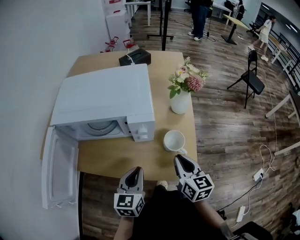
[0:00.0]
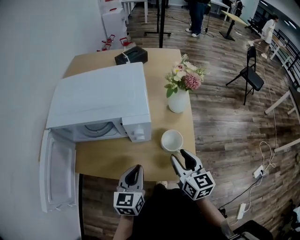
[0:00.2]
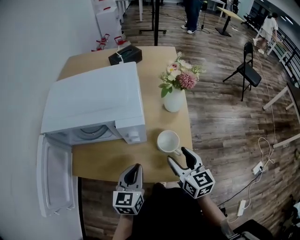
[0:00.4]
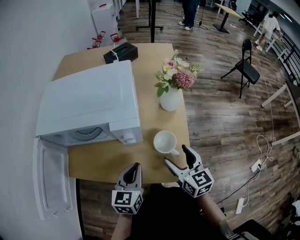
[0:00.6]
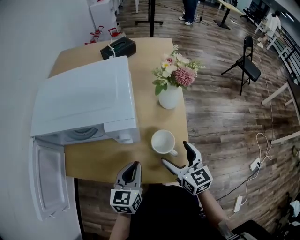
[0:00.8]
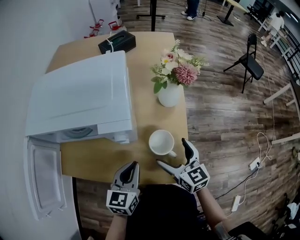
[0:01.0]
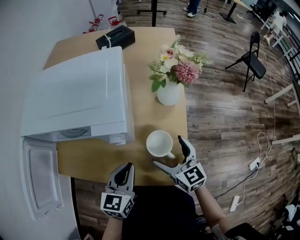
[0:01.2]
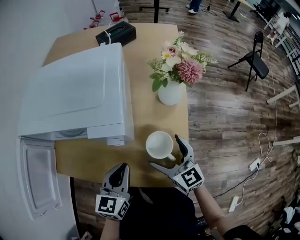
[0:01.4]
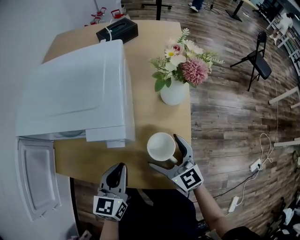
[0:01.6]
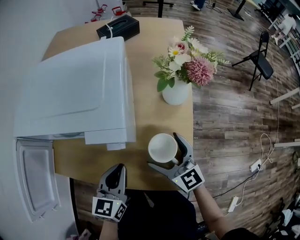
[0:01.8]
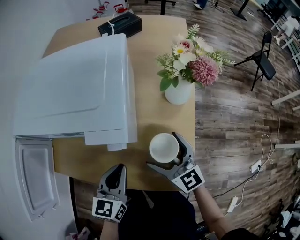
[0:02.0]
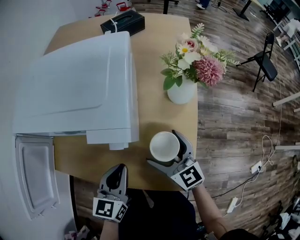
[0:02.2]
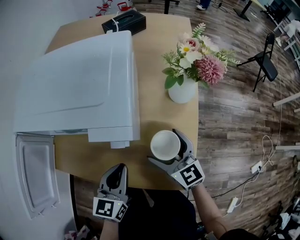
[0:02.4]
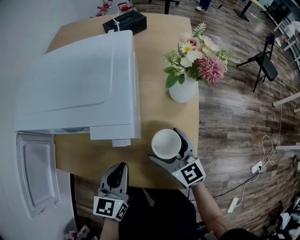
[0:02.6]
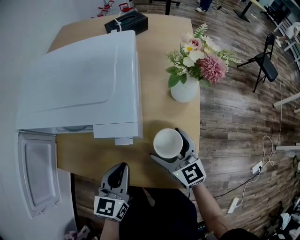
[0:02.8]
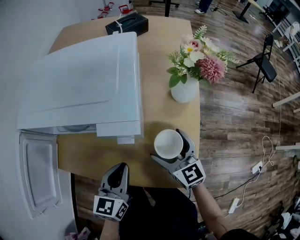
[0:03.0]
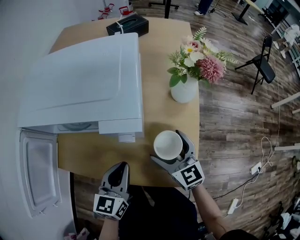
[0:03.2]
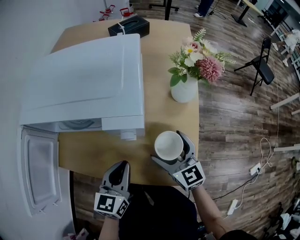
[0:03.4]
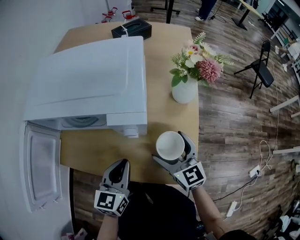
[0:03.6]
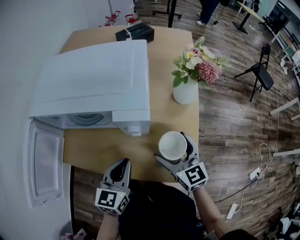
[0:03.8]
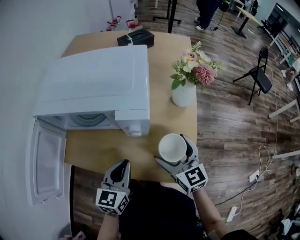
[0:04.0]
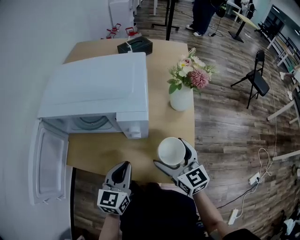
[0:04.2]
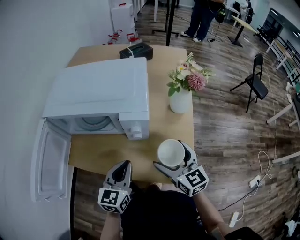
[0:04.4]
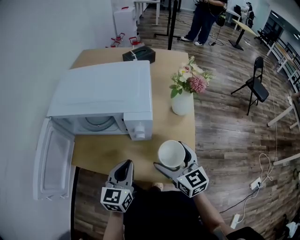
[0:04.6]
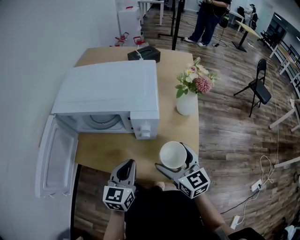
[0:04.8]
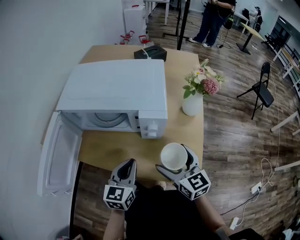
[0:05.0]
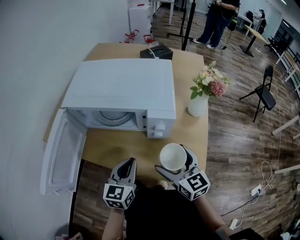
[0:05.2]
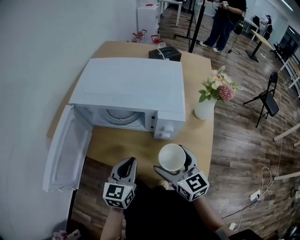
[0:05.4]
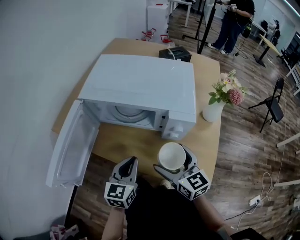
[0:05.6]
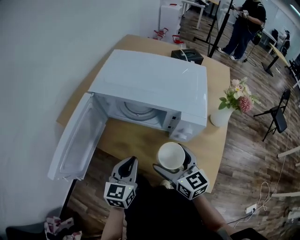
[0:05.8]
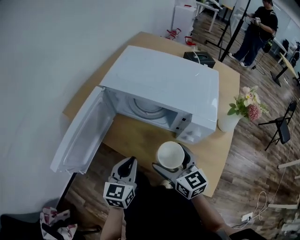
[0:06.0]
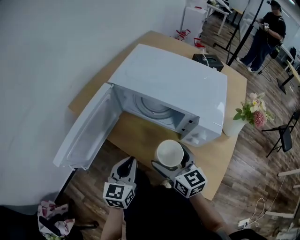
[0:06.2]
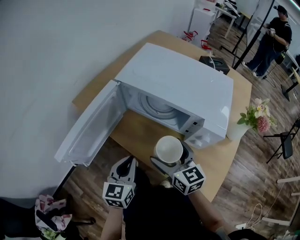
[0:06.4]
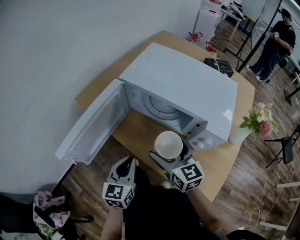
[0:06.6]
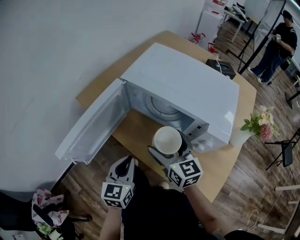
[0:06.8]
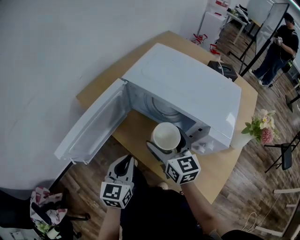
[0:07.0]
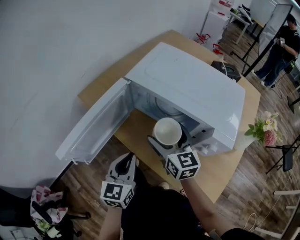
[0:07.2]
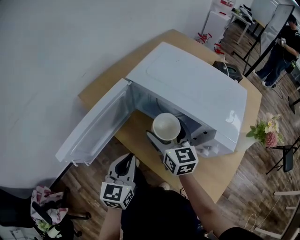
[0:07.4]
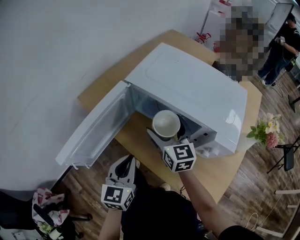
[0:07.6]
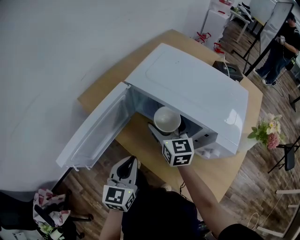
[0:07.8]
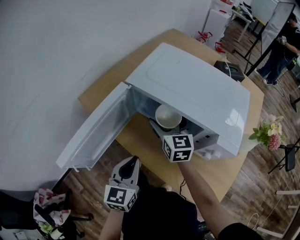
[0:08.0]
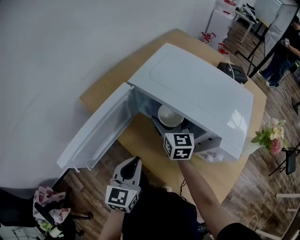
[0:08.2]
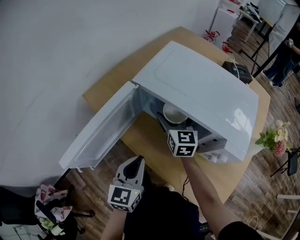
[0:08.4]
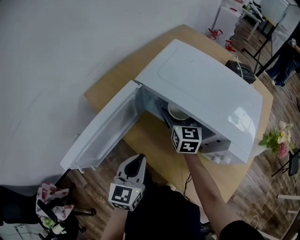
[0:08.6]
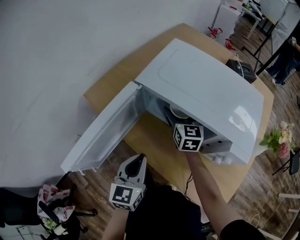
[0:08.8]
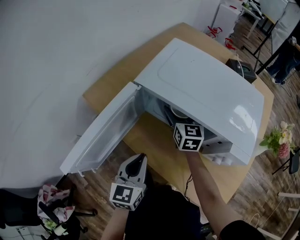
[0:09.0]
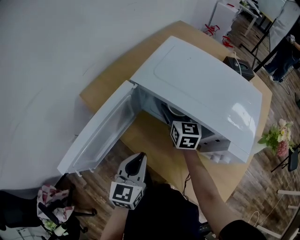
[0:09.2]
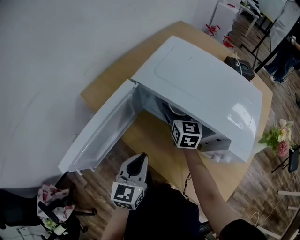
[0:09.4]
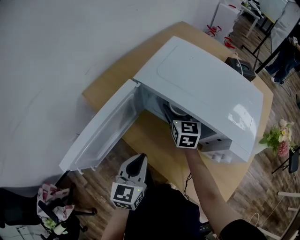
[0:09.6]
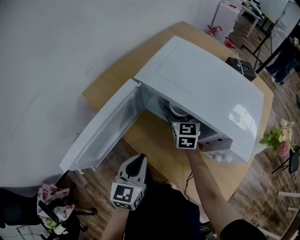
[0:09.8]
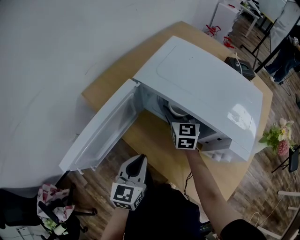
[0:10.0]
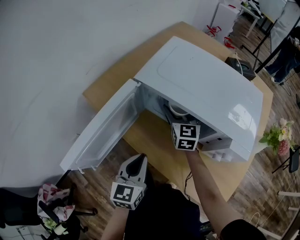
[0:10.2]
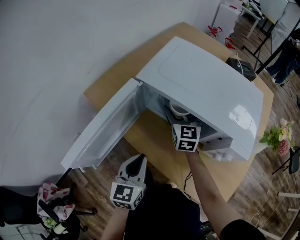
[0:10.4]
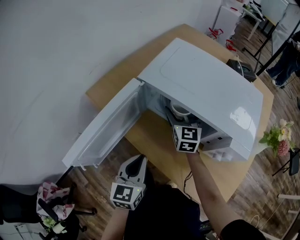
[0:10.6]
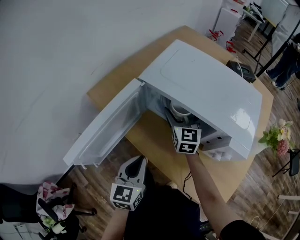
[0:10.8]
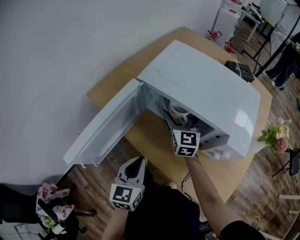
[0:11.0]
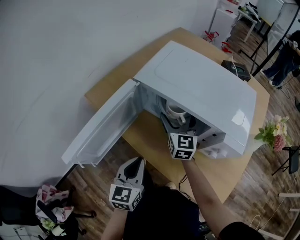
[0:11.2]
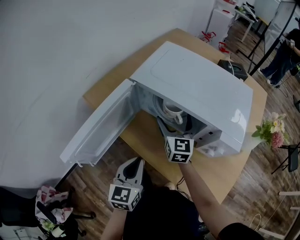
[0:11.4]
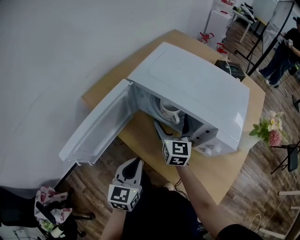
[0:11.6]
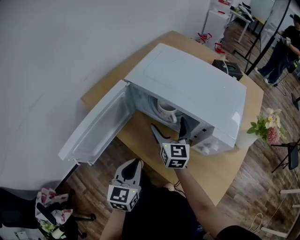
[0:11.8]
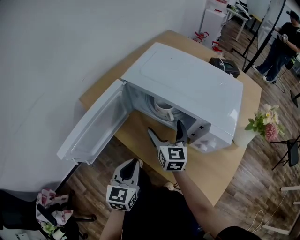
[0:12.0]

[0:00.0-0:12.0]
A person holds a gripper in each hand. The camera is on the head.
0:00.0 to 0:01.6: The left gripper moves forward, approximately 5 cm; the right gripper moves forward and downward, about 10 cm, swivels about 30 degrees, and opens its fingers.
0:01.6 to 0:03.0: The grippers make only small movements.
0:03.0 to 0:04.4: The right gripper moves upward and backward, about 10 cm, while the left gripper changes place by roughly 5 cm.
0:04.4 to 0:06.0: The two grippers go approximately 20 cm to the left. The right gripper swivels about 20 degrees.
0:06.0 to 0:07.6: The right gripper is displaced forward by roughly 15 cm. The left gripper moves to the left, about 5 cm.
0:07.6 to 0:09.0: The right gripper goes about 10 cm forward.
0:09.0 to 0:10.4: There are only small adjustments of the grippers.
0:10.4 to 0:12.0: The left gripper changes place by some 5 cm. The right gripper shifts some 10 cm backward.

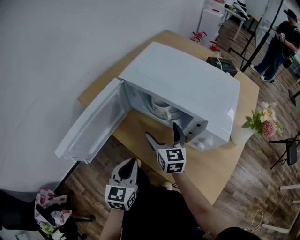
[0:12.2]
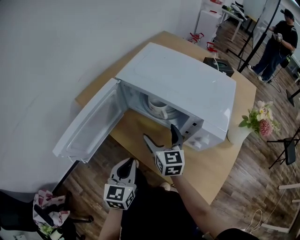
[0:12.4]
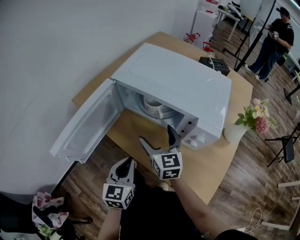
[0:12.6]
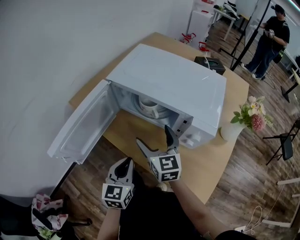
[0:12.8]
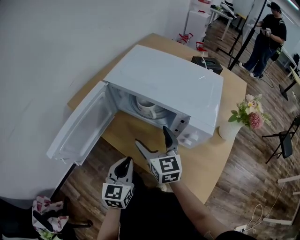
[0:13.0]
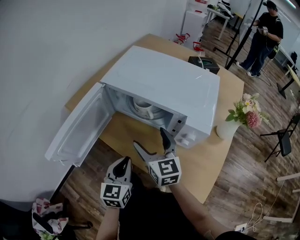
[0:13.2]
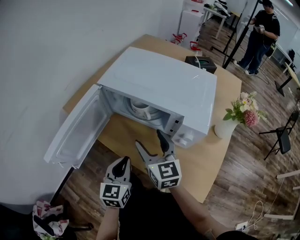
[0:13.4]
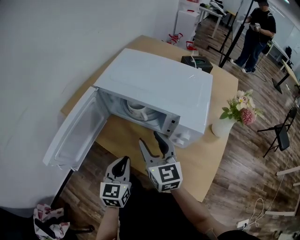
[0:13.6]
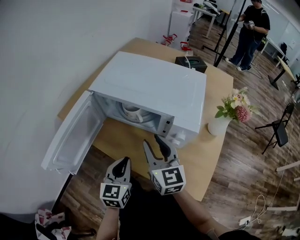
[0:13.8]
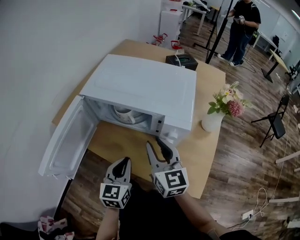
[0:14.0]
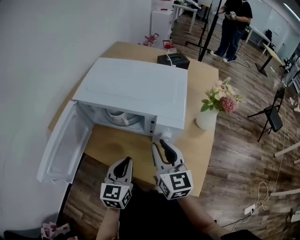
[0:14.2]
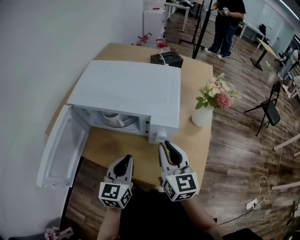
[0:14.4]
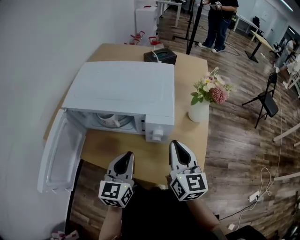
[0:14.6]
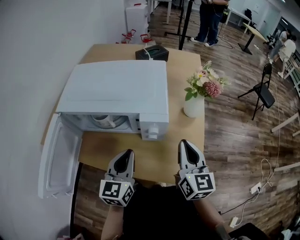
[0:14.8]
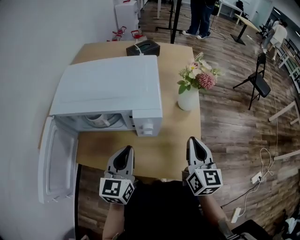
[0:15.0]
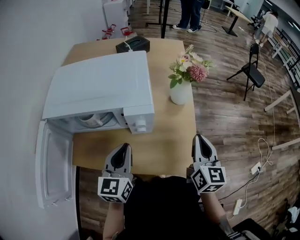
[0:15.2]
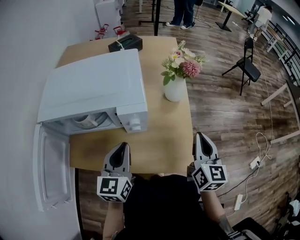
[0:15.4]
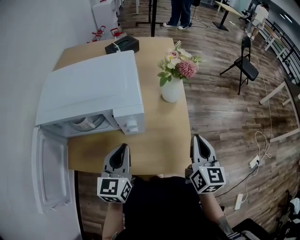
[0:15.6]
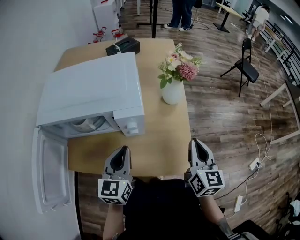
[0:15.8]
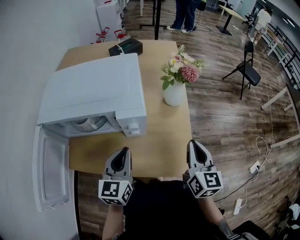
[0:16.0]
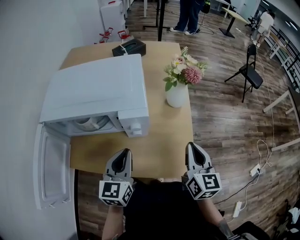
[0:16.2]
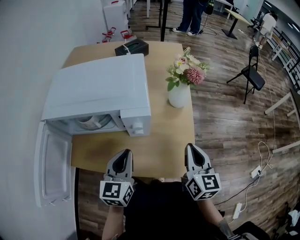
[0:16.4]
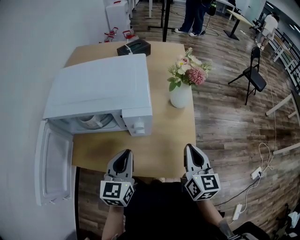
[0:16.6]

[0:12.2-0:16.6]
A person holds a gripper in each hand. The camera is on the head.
0:12.2 to 0:13.6: The right gripper goes roughly 10 cm upward and backward, and closes up.
0:13.6 to 0:15.2: The right gripper moves approximately 35 cm, swivels roughly 50 degrees, and closes up. Meanwhile the left gripper changes place by about 15 cm, and swivels roughly 30 degrees.
0:15.2 to 0:16.6: The grippers stay close to where they were, moving slightly.

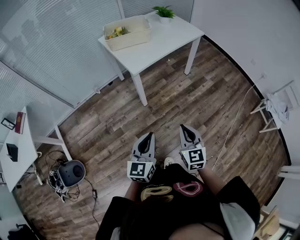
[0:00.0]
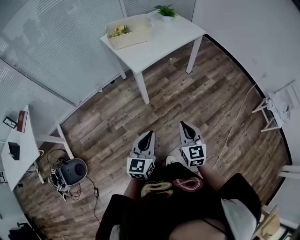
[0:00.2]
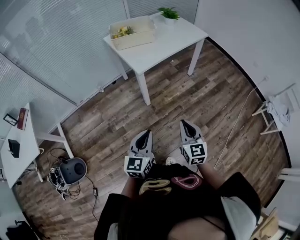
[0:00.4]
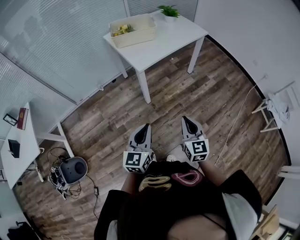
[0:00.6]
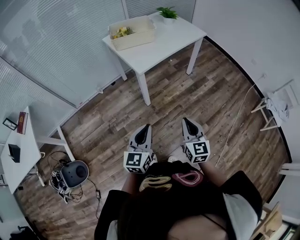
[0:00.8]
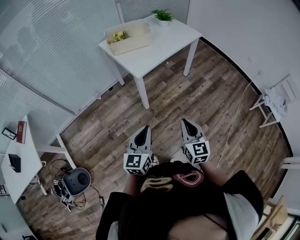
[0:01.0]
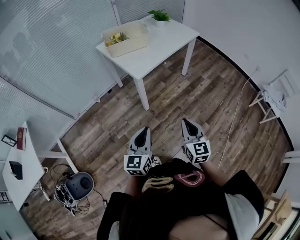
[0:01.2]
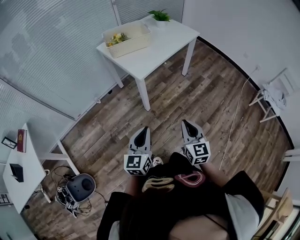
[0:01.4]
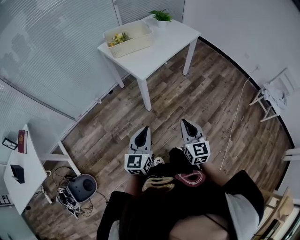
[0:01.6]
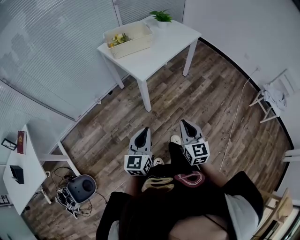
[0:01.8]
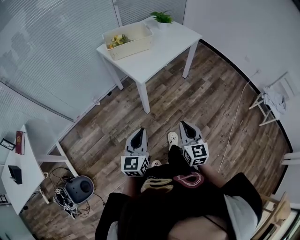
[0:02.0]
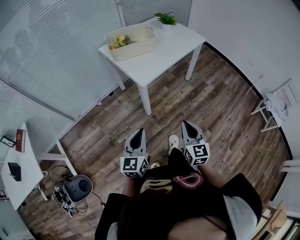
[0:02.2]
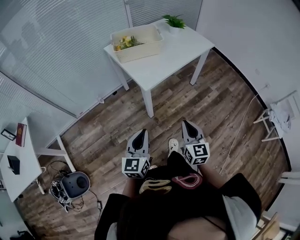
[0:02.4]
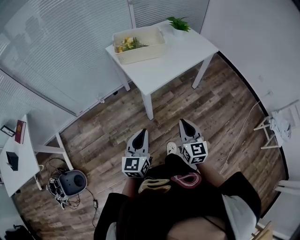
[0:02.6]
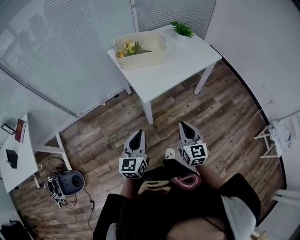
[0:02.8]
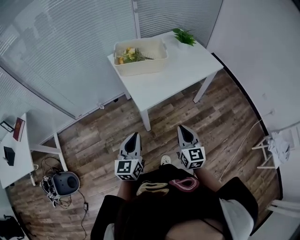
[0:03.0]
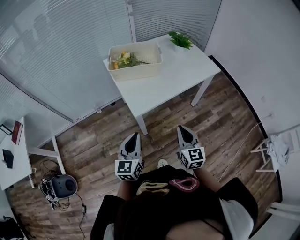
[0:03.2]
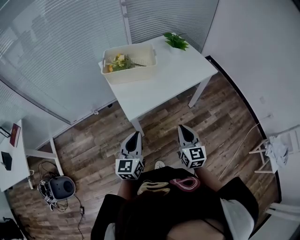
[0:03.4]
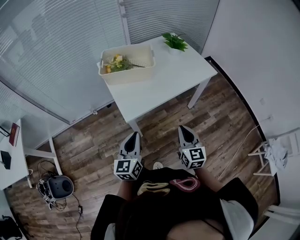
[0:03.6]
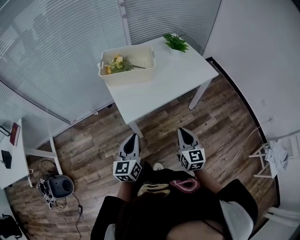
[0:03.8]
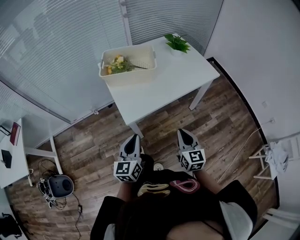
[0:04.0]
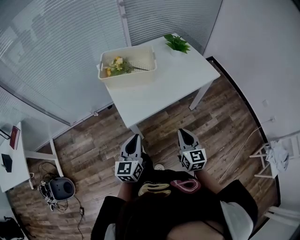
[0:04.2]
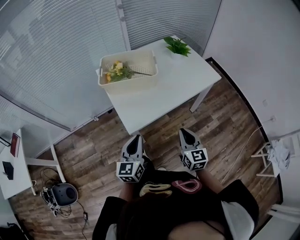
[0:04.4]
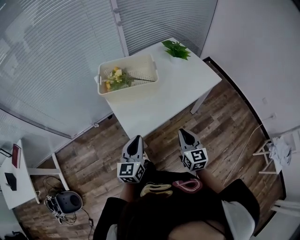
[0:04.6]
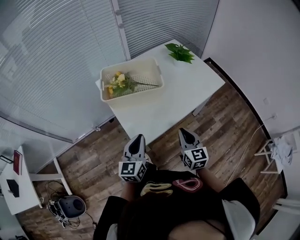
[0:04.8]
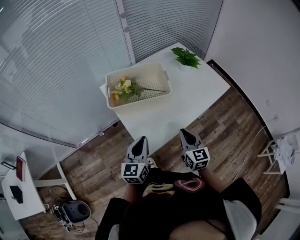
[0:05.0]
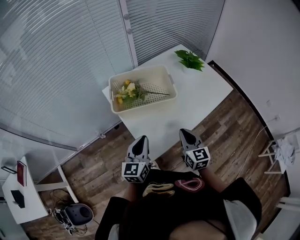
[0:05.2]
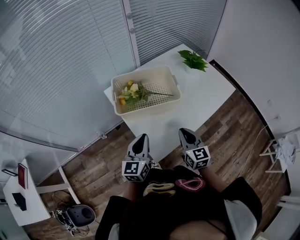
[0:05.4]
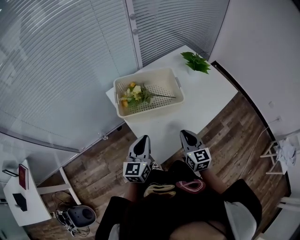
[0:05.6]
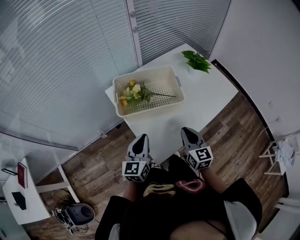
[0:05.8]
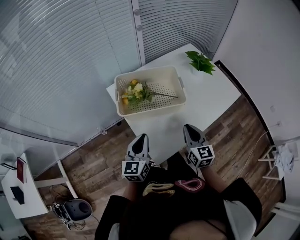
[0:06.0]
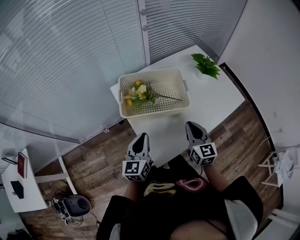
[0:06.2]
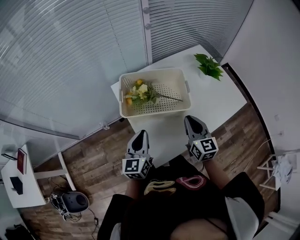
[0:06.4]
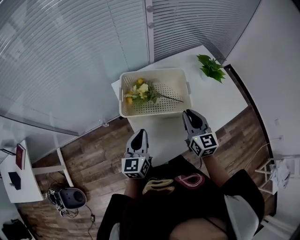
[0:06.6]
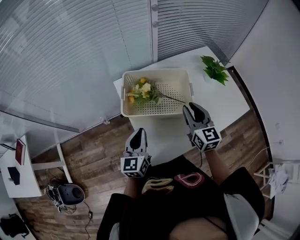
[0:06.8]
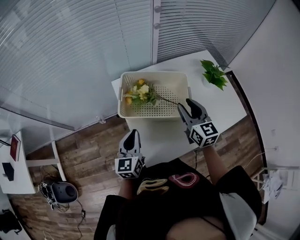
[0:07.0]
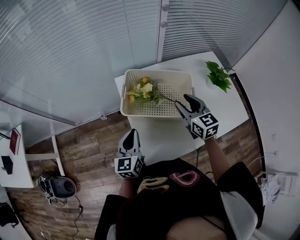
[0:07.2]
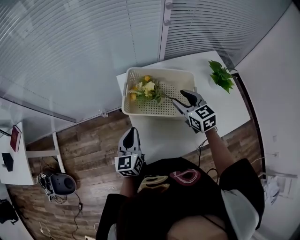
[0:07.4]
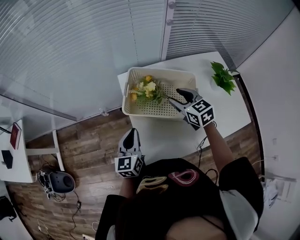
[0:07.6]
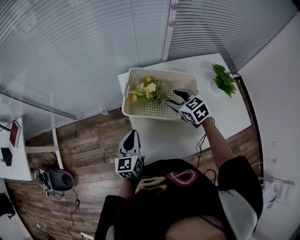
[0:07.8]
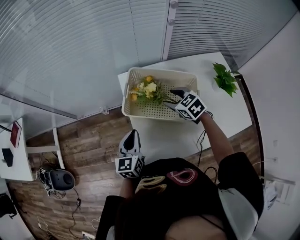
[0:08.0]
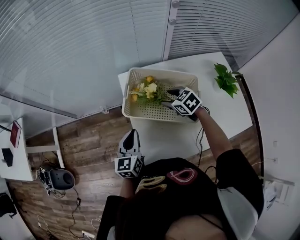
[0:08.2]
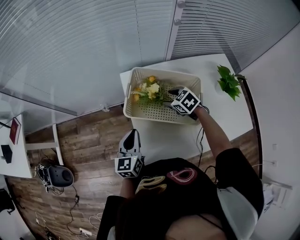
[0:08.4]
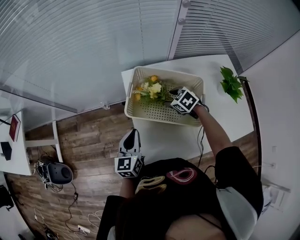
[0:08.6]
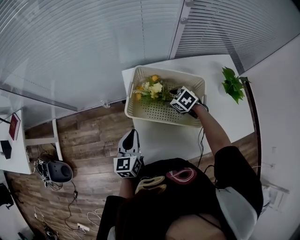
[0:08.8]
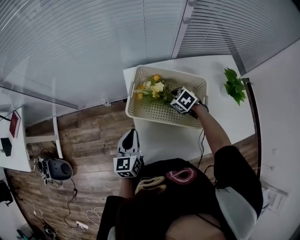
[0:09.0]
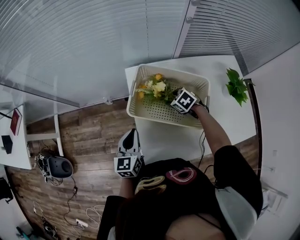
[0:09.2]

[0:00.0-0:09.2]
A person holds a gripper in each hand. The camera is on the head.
0:00.0 to 0:01.6: The left gripper travels to the left and forward by some 15 cm. Meanwhile the right gripper heads to the left, covering roughly 10 cm.
0:01.6 to 0:03.0: Both grippers move forward, about 20 cm.
0:03.0 to 0:04.6: Both grippers travel together forward, some 15 cm.
0:04.6 to 0:06.2: The two grippers go approximately 20 cm forward and to the left.
0:06.2 to 0:07.6: The right gripper moves some 20 cm, swivels roughly 40 degrees, and opens up. Meanwhile the left gripper changes place by some 5 cm.
0:07.6 to 0:09.2: The right gripper moves downward, roughly 15 cm, and angles its fingers downward, by roughly 40 degrees.
